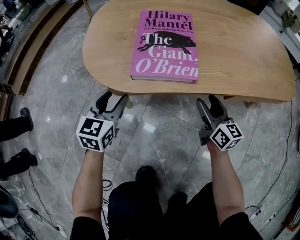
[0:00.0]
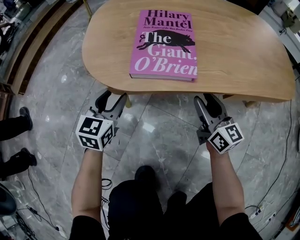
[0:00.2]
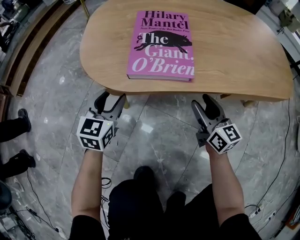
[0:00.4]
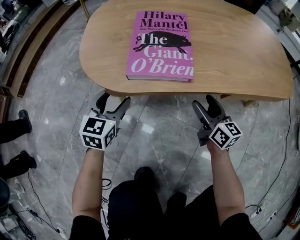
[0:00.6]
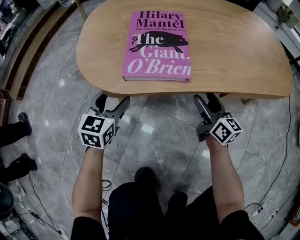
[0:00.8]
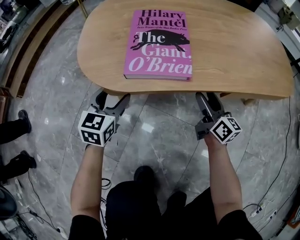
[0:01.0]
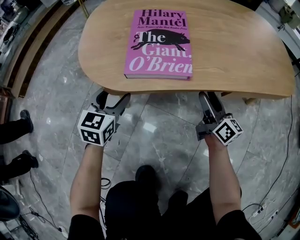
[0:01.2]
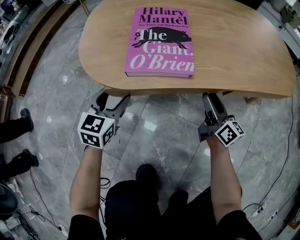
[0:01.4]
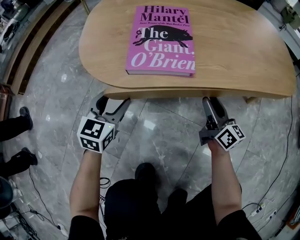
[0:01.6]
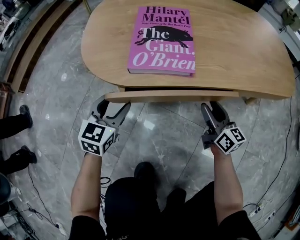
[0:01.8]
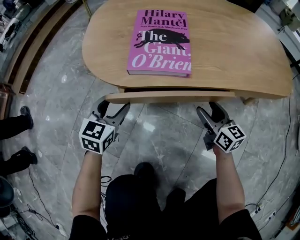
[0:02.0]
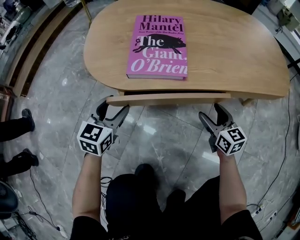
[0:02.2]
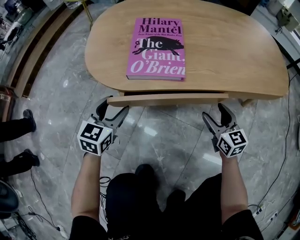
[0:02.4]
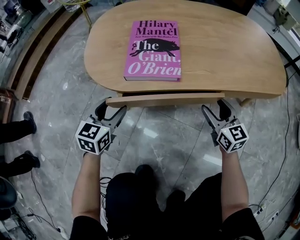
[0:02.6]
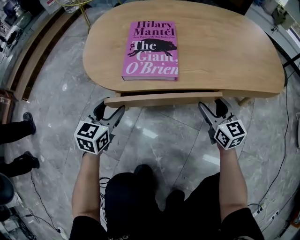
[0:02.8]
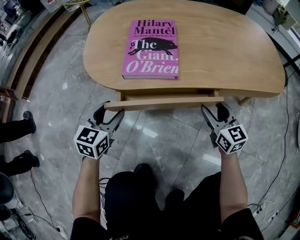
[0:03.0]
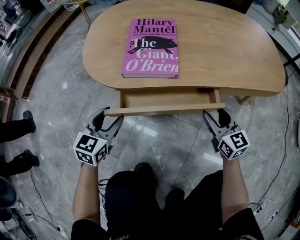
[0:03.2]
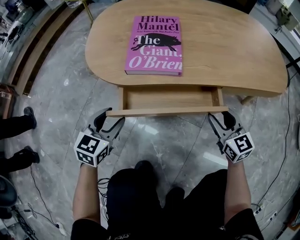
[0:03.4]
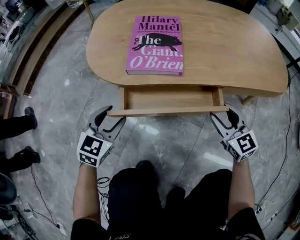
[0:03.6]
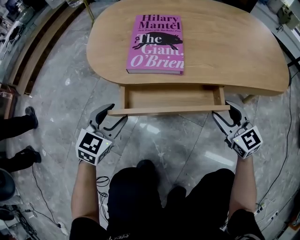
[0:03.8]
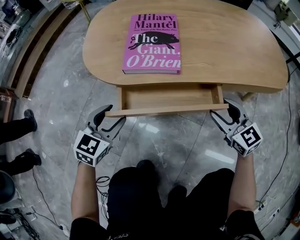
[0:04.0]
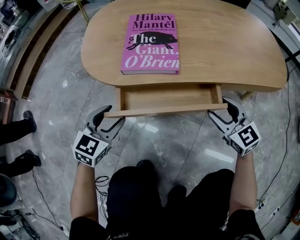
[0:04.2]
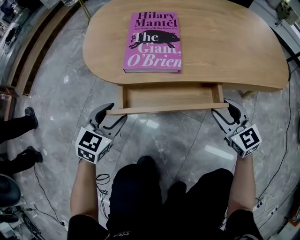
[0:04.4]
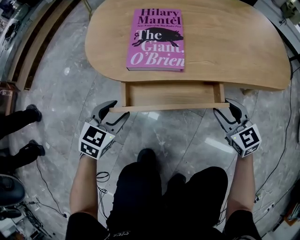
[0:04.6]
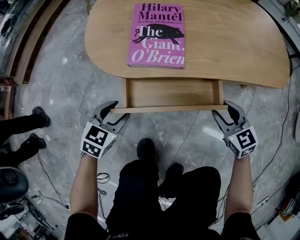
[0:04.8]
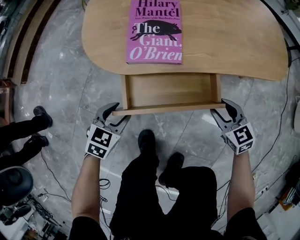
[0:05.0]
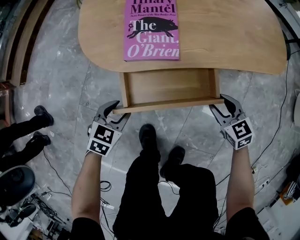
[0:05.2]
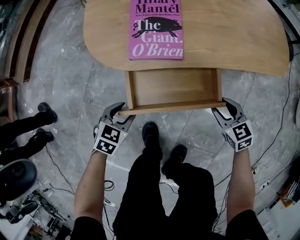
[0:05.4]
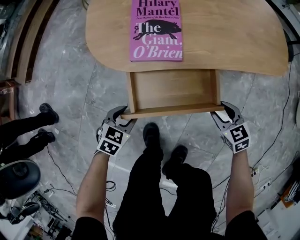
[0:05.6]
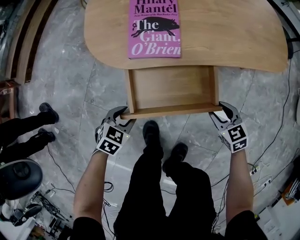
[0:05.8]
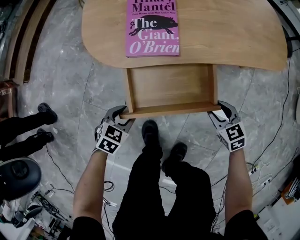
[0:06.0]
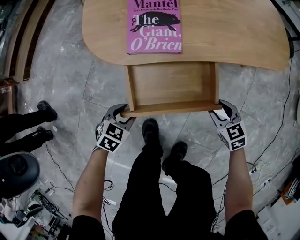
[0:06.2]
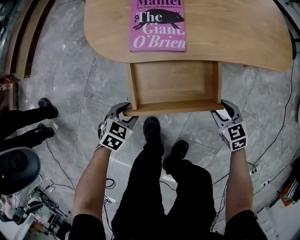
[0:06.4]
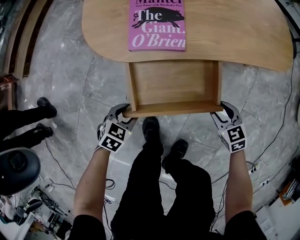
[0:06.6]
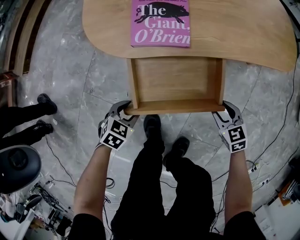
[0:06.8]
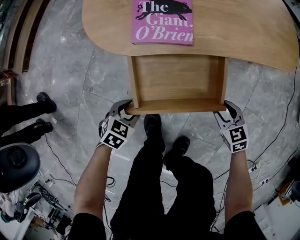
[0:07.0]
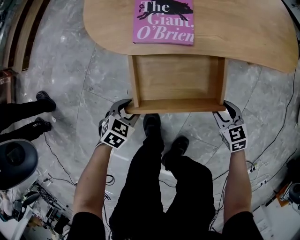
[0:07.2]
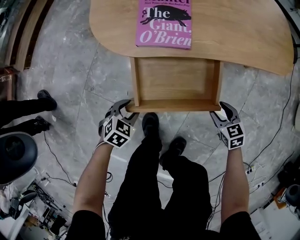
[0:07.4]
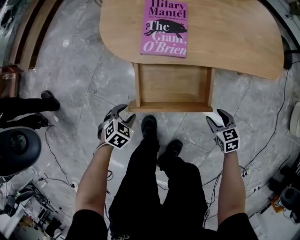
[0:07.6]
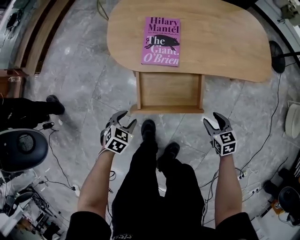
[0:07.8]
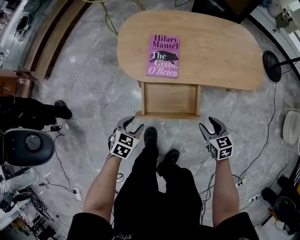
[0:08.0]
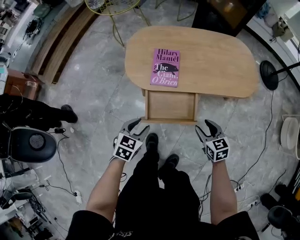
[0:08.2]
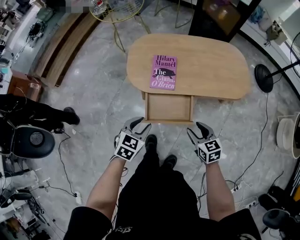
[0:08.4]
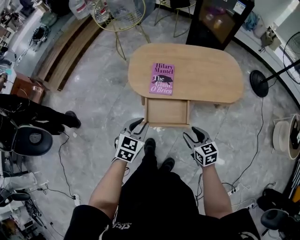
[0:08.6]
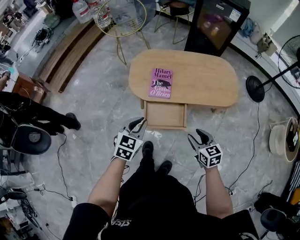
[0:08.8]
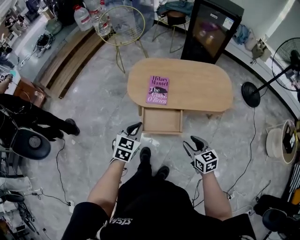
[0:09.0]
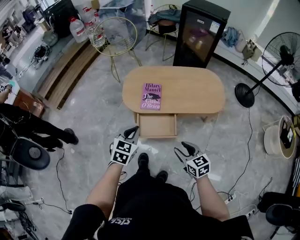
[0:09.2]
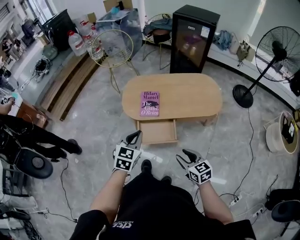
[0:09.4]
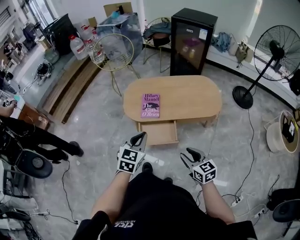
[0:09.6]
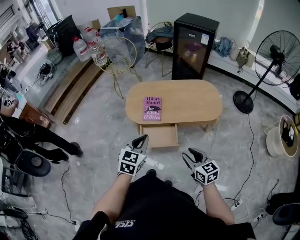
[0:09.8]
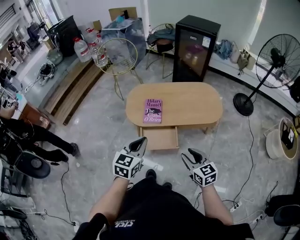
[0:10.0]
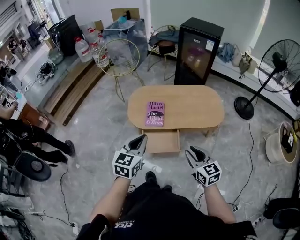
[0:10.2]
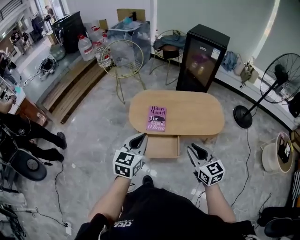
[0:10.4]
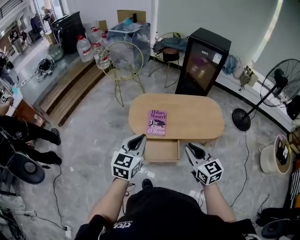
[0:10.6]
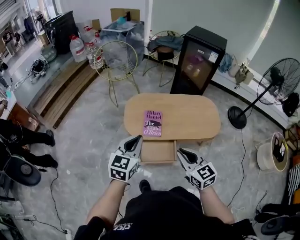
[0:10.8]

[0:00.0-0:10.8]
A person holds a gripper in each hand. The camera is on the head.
0:00.0 to 0:01.6: The grippers move only a little.
0:01.6 to 0:03.0: The right gripper changes place by some 5 cm, and changes its angle by roughly 30 degrees.
0:03.0 to 0:04.6: The right gripper moves approximately 5 cm, and turns by roughly 20 degrees.
0:04.6 to 0:06.2: The grippers both shift backward by about 10 cm. The left gripper rotates roughly 20 degrees. The right gripper turns by some 20 degrees.
0:06.2 to 0:07.8: Both grippers move upward, some 10 cm.
0:07.8 to 0:09.2: The grippers both shift upward by approximately 40 cm. The right gripper turns by about 20 degrees. Meanwhile the left gripper rotates some 30 degrees, and closes up.
0:09.2 to 0:10.8: The left gripper moves upward and forward, approximately 15 cm; the right gripper goes roughly 20 cm upward, forward and to the left, and closes up.

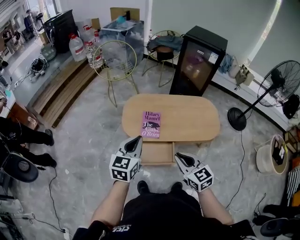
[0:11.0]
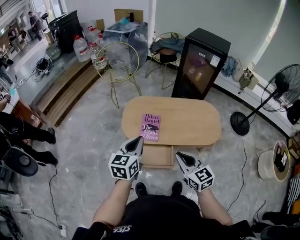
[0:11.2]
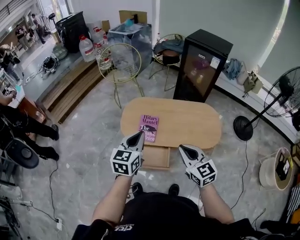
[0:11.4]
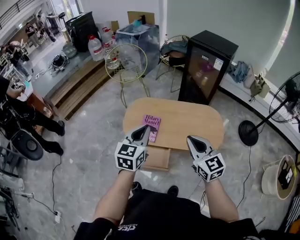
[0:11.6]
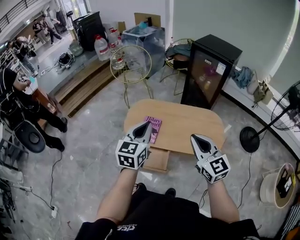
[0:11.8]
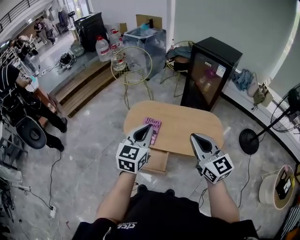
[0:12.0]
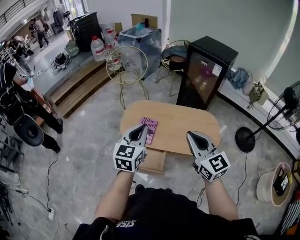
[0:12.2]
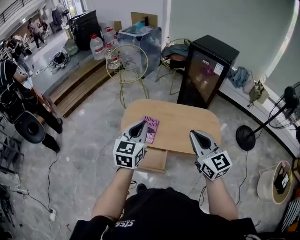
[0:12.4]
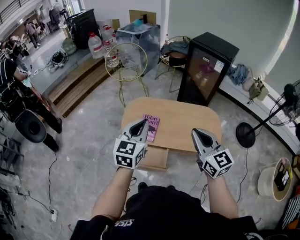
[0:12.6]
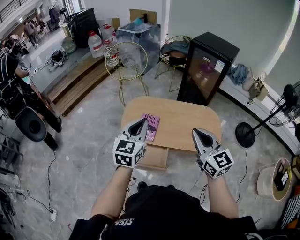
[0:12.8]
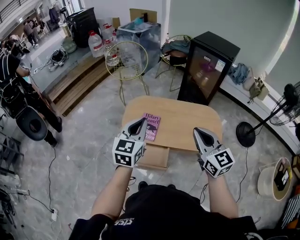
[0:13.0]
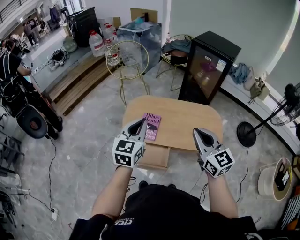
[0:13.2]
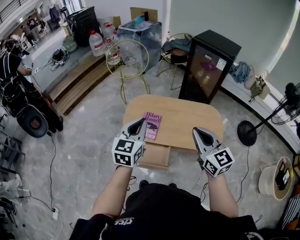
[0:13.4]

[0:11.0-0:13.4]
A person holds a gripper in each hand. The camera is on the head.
0:11.0 to 0:12.2: The two grippers go about 20 cm to the right and upward. The right gripper changes its angle by about 20 degrees.
0:12.2 to 0:13.4: The grippers move only a little.

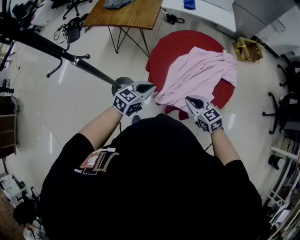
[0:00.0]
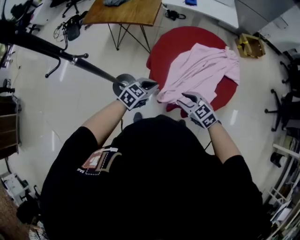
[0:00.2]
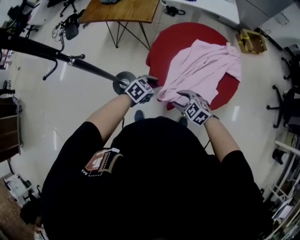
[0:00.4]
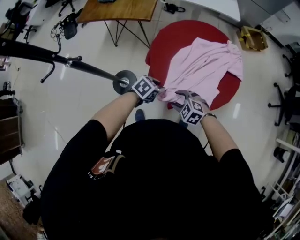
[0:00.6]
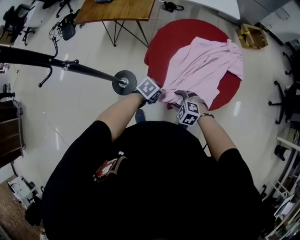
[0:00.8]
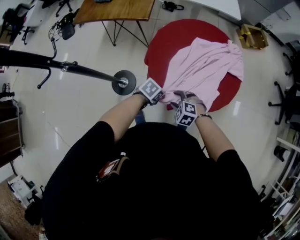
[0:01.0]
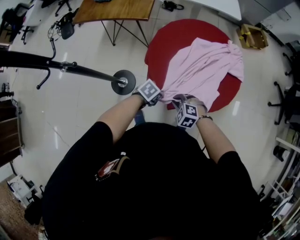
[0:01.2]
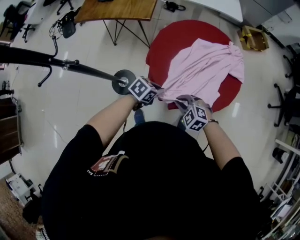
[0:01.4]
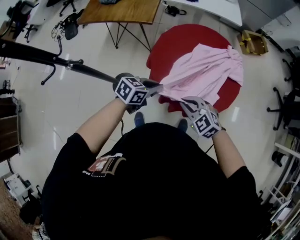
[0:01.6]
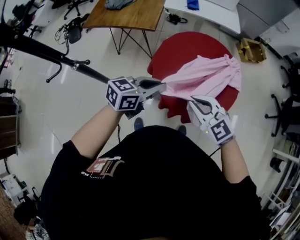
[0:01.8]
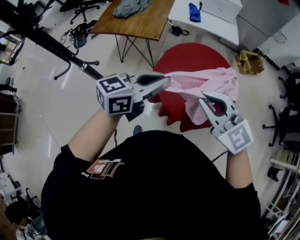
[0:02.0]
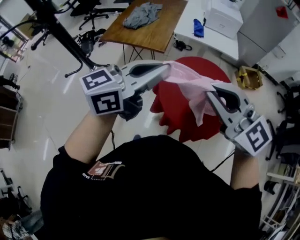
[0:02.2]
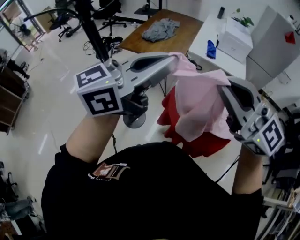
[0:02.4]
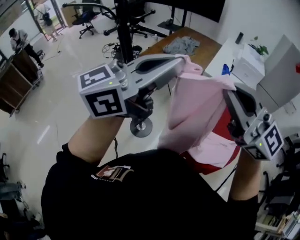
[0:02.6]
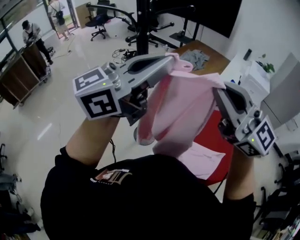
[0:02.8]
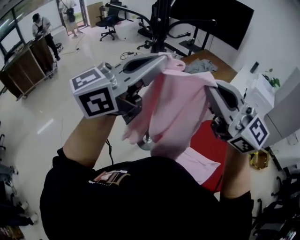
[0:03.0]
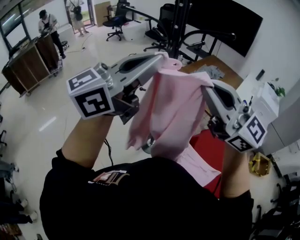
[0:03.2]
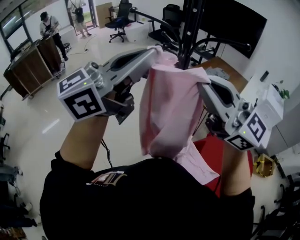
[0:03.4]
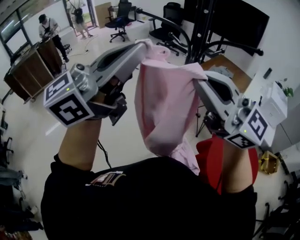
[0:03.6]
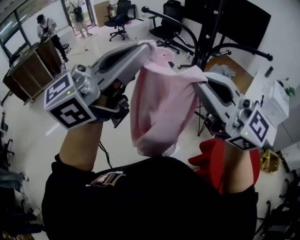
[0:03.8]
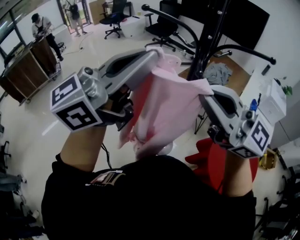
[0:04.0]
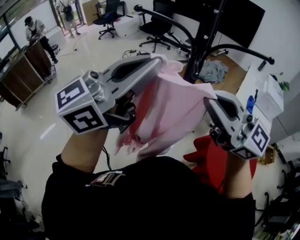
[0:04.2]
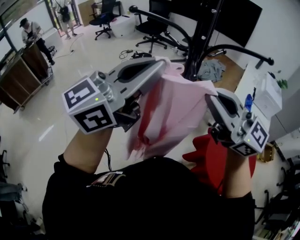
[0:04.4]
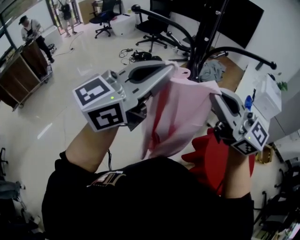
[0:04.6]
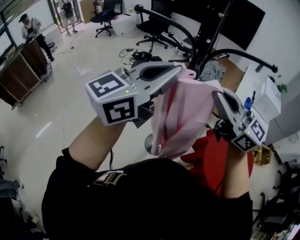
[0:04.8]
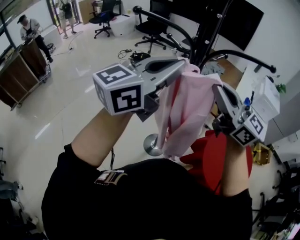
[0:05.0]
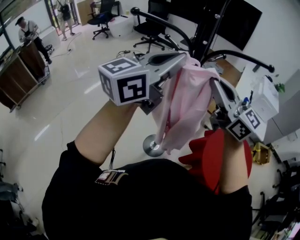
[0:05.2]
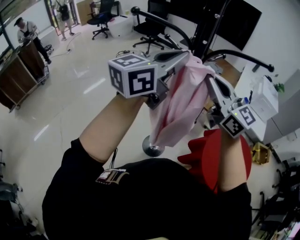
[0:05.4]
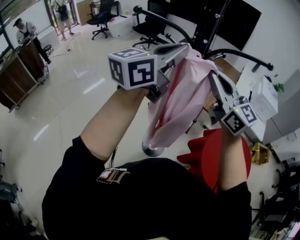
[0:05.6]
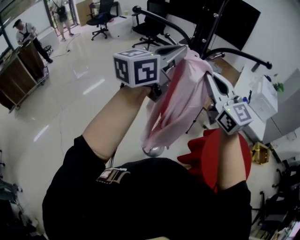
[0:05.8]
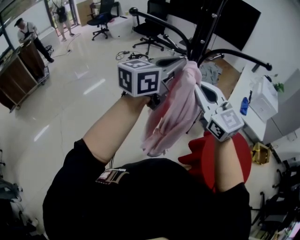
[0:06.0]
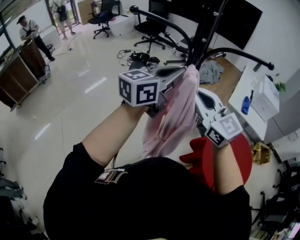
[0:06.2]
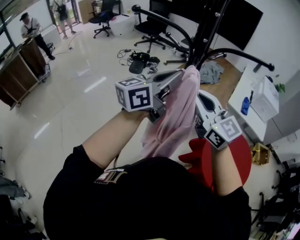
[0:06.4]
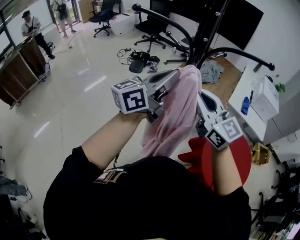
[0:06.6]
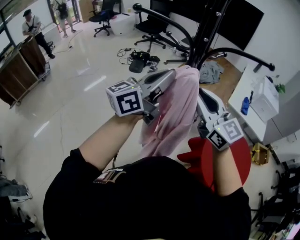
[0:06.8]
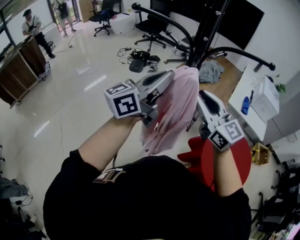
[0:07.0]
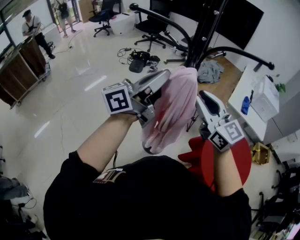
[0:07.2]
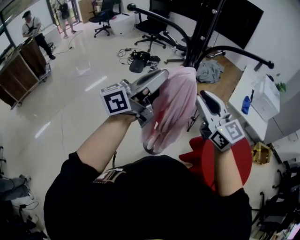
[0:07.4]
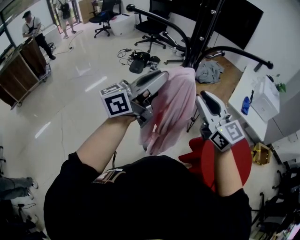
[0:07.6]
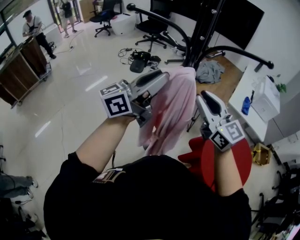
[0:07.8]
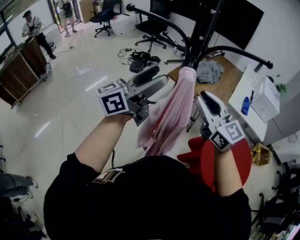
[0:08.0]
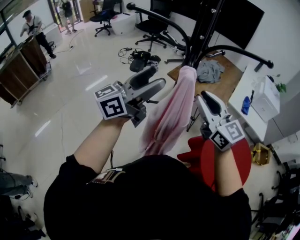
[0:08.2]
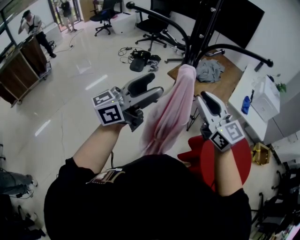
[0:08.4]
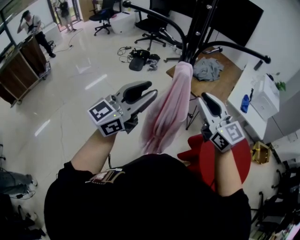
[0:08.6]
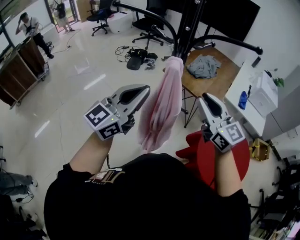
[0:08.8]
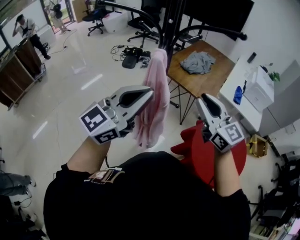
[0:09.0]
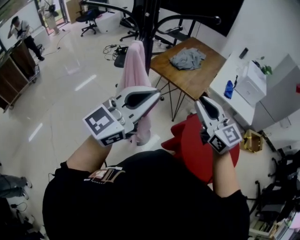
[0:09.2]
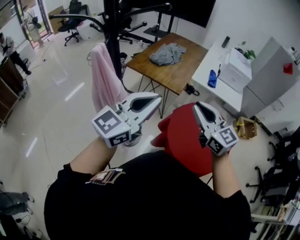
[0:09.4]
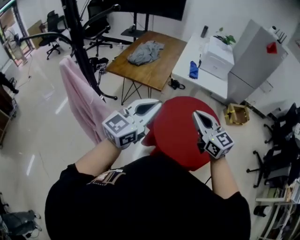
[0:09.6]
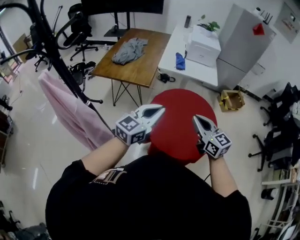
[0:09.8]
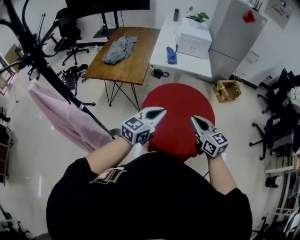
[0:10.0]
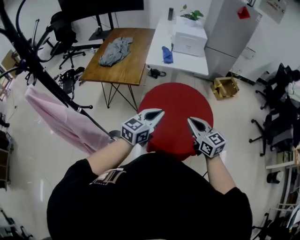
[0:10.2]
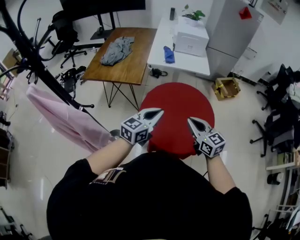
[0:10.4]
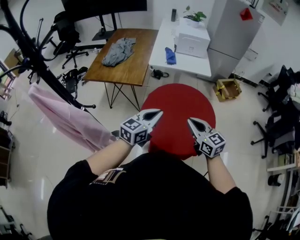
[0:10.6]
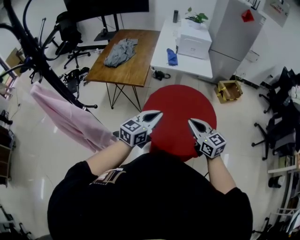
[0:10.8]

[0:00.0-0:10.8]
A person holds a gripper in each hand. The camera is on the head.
0:00.0 to 0:01.6: The left gripper travels downward and back again, about 15 cm each way. The right gripper goes downward and returns, roughly 15 cm each way, rotates some 20 degrees, and opens and closes again.
0:01.6 to 0:03.0: The two grippers go roughly 50 cm upward. The right gripper angles its fingers upward, by some 50 degrees; the left gripper angles its fingers upward, by approximately 60 degrees.
0:03.0 to 0:04.6: The left gripper heads to the left and forward, covering roughly 20 cm. Meanwhile the right gripper is displaced forward and to the left by about 20 cm.
0:04.6 to 0:06.2: The right gripper travels downward and forward by approximately 10 cm; the left gripper heads forward and downward, covering some 15 cm.
0:06.2 to 0:07.8: The right gripper changes place by about 5 cm. The left gripper ends up about 5 cm from where it was, and turns by approximately 20 degrees.
0:07.8 to 0:09.2: Both grippers travel together to the right and backward, some 20 cm. The left gripper rotates roughly 30 degrees, and opens, then closes once more.
0:09.2 to 0:10.8: The right gripper moves about 35 cm, and rotates some 30 degrees. The left gripper moves about 40 cm, and turns by about 30 degrees.
